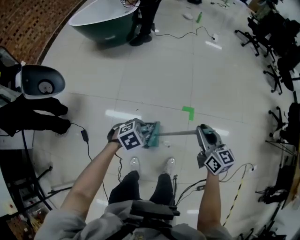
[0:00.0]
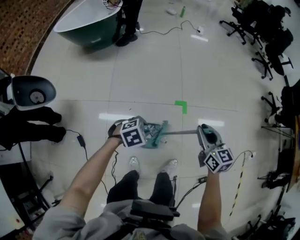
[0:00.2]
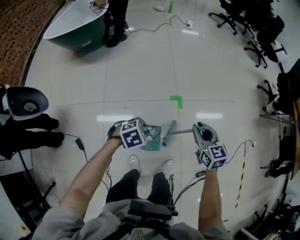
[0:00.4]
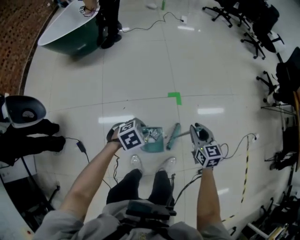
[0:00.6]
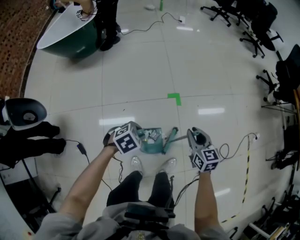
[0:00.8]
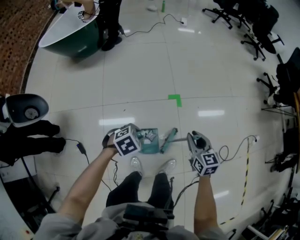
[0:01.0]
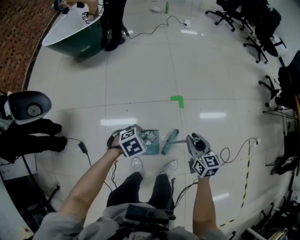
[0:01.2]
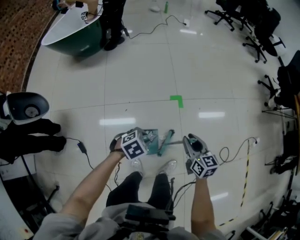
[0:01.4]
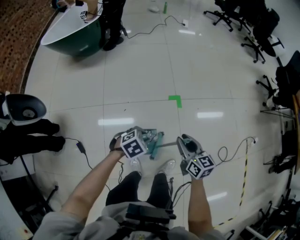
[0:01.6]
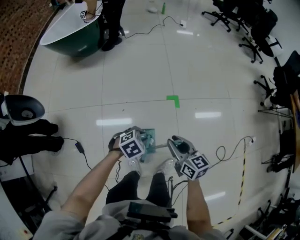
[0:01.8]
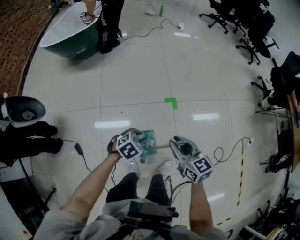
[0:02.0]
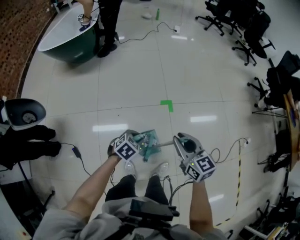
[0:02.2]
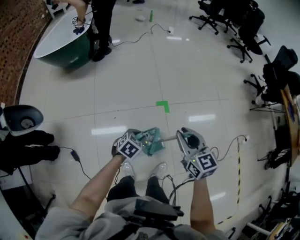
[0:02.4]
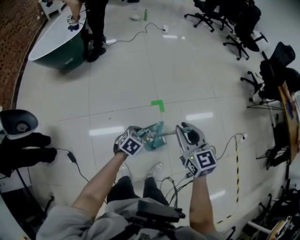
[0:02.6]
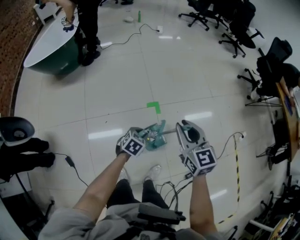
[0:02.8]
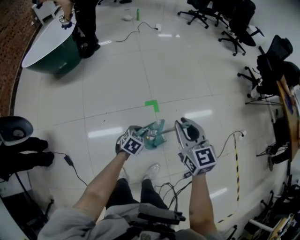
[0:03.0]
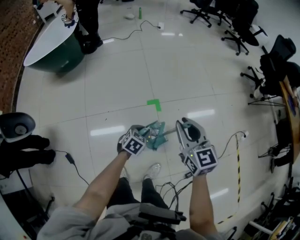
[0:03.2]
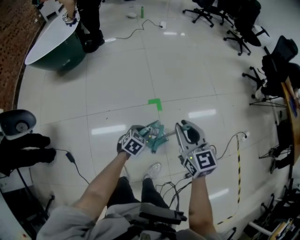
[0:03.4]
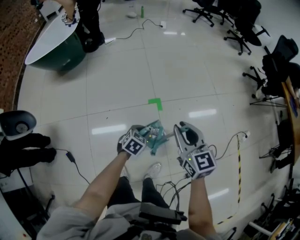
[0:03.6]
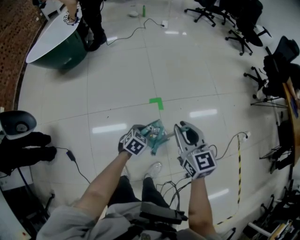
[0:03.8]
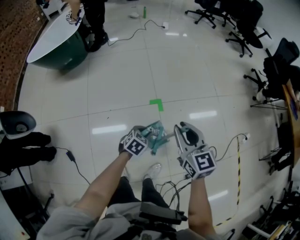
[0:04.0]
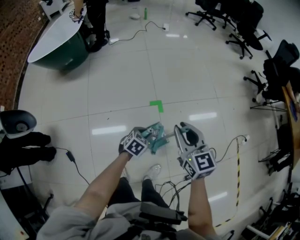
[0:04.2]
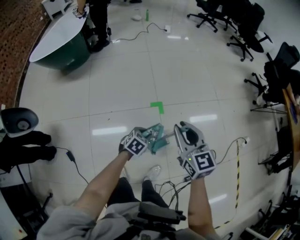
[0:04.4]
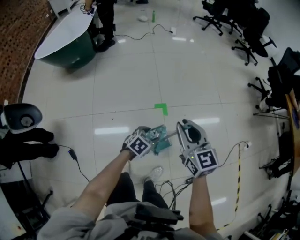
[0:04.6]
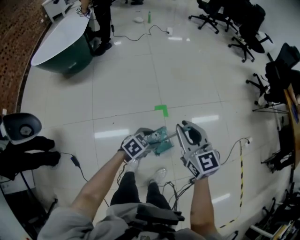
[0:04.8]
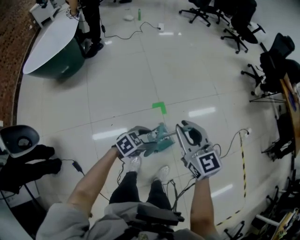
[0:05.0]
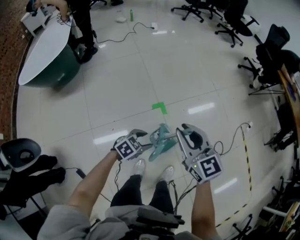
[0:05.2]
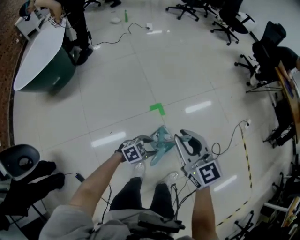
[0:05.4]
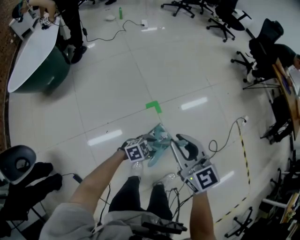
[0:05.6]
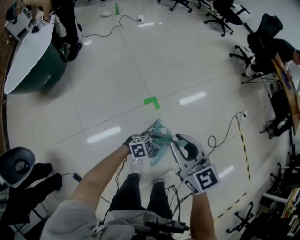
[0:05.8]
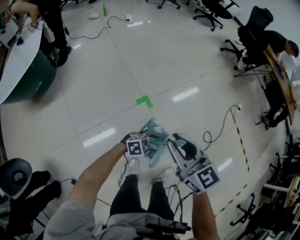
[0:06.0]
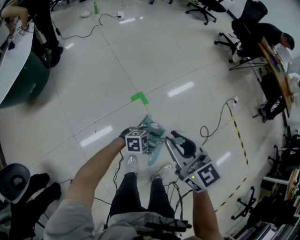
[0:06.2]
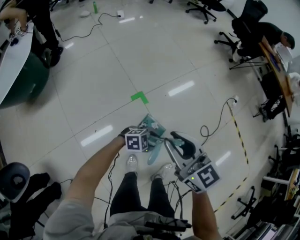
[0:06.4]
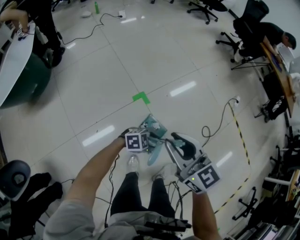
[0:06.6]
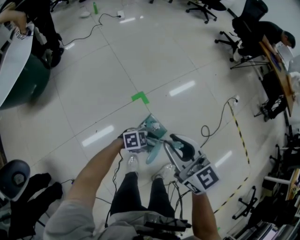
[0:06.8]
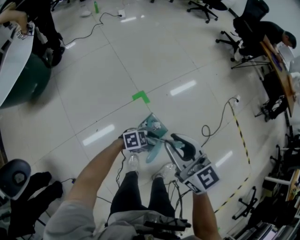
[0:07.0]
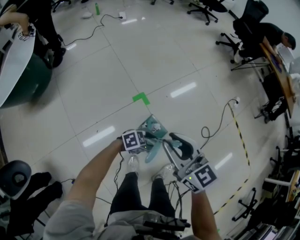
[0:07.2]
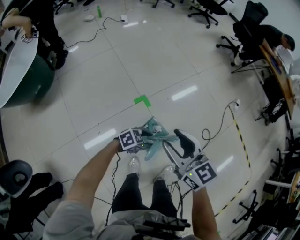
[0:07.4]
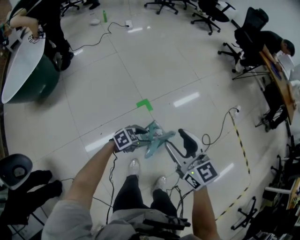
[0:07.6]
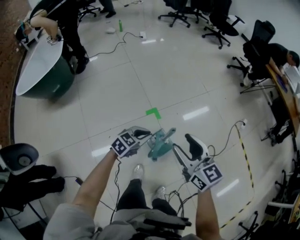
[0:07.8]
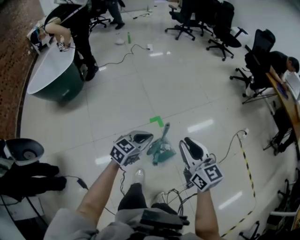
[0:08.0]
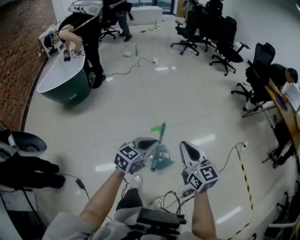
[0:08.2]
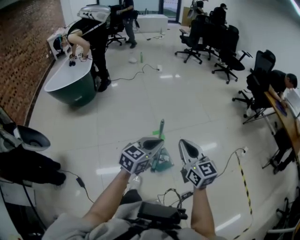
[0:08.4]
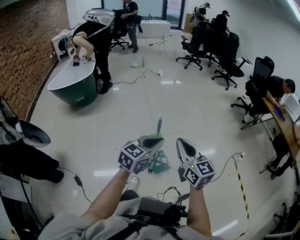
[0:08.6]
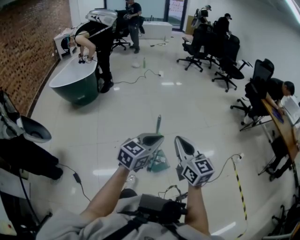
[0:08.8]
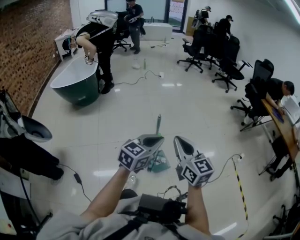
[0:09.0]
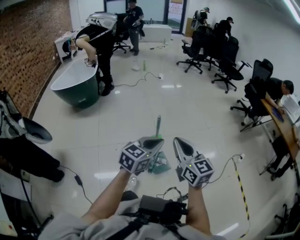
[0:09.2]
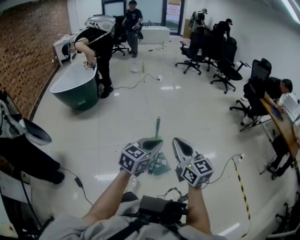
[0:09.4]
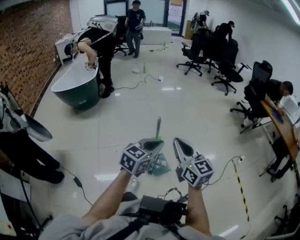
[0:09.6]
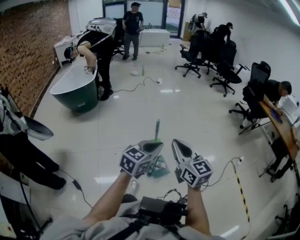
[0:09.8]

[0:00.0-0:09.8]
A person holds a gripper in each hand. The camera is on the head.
0:00.0 to 0:01.4: The right gripper heads to the right, downward and backward, covering roughly 15 cm. The left gripper shifts roughly 10 cm to the right.
0:01.4 to 0:02.8: The right gripper goes some 15 cm upward, and changes its angle by some 20 degrees. The left gripper goes about 15 cm to the right and forward, and swivels approximately 20 degrees.
0:02.8 to 0:04.2: The grippers move only a little.
0:04.2 to 0:05.6: The right gripper ends up approximately 10 cm from where it was; the left gripper moves about 5 cm upward and comes back, changes its angle by approximately 50 degrees, and opens its fingers.
0:05.6 to 0:07.0: The left gripper changes place by some 5 cm, and swivels about 20 degrees.
0:07.0 to 0:08.4: The right gripper ends up roughly 15 cm from where it was, and closes its fingers; the left gripper goes some 30 cm upward, swivels approximately 60 degrees, and closes up.
0:08.4 to 0:09.8: Both grippers move backward, some 5 cm.

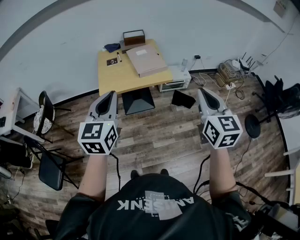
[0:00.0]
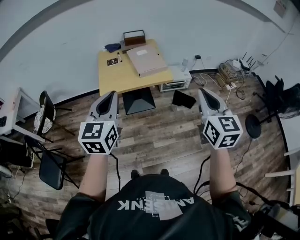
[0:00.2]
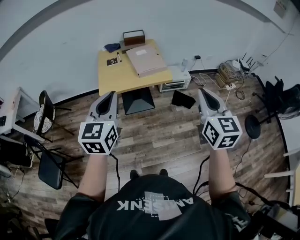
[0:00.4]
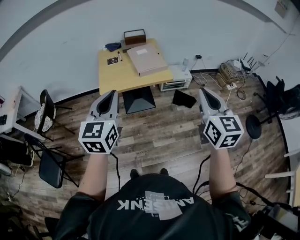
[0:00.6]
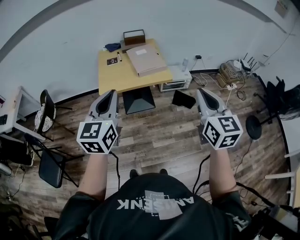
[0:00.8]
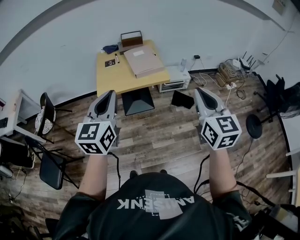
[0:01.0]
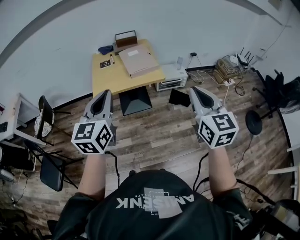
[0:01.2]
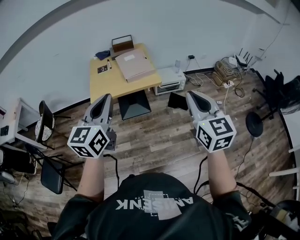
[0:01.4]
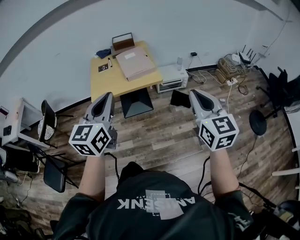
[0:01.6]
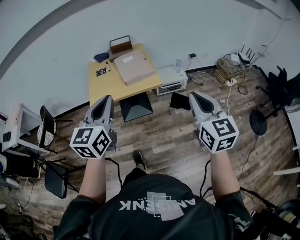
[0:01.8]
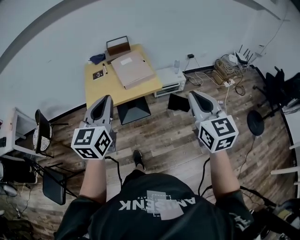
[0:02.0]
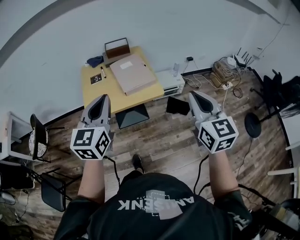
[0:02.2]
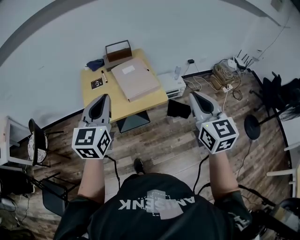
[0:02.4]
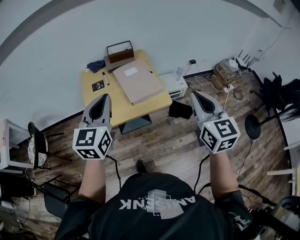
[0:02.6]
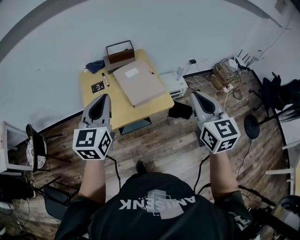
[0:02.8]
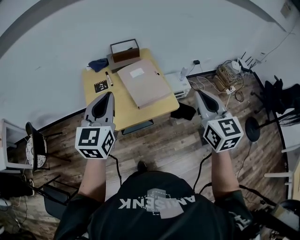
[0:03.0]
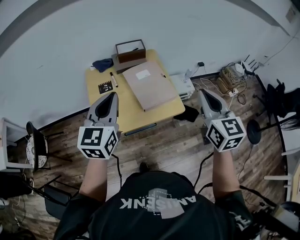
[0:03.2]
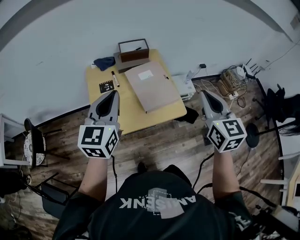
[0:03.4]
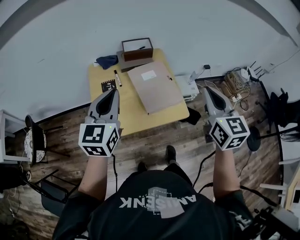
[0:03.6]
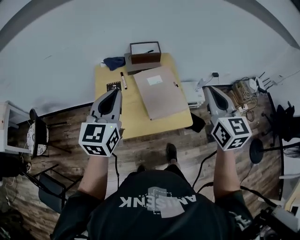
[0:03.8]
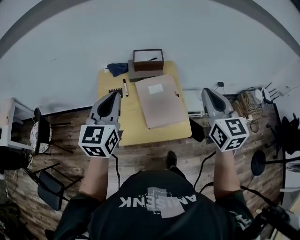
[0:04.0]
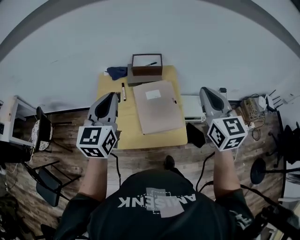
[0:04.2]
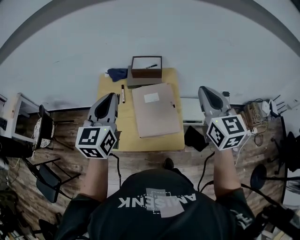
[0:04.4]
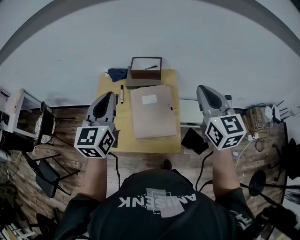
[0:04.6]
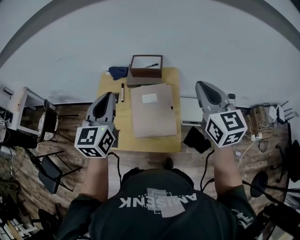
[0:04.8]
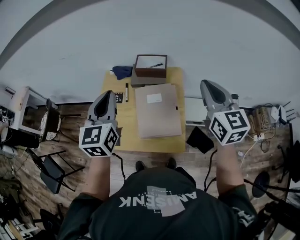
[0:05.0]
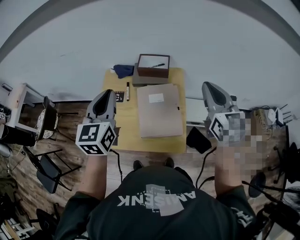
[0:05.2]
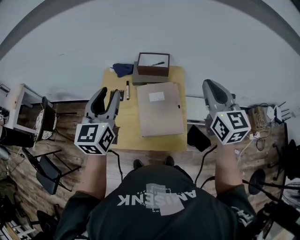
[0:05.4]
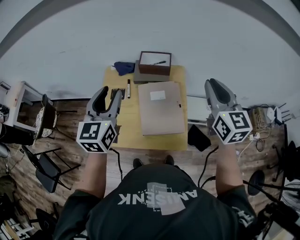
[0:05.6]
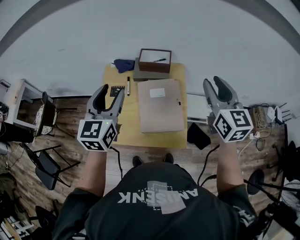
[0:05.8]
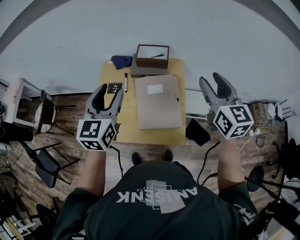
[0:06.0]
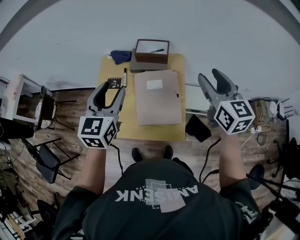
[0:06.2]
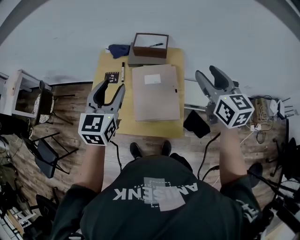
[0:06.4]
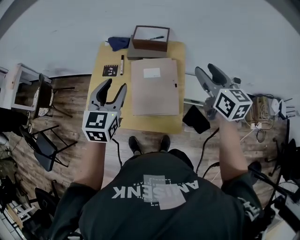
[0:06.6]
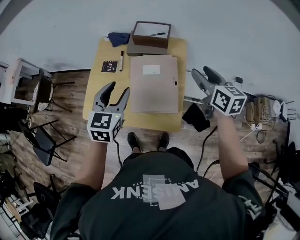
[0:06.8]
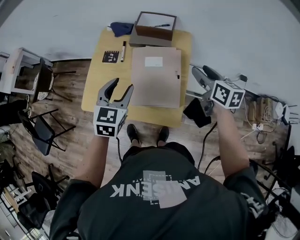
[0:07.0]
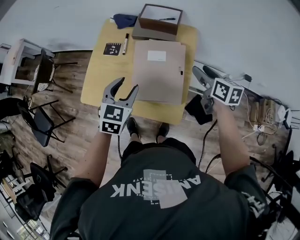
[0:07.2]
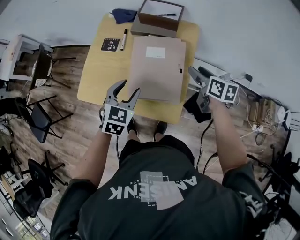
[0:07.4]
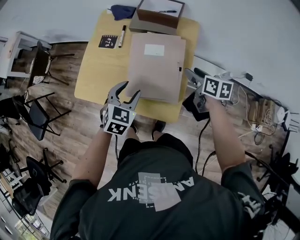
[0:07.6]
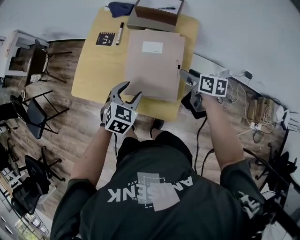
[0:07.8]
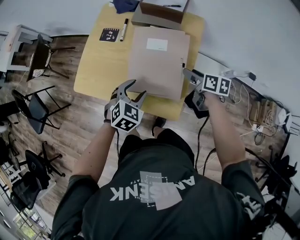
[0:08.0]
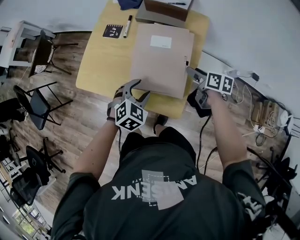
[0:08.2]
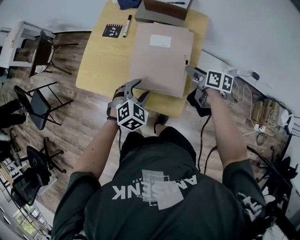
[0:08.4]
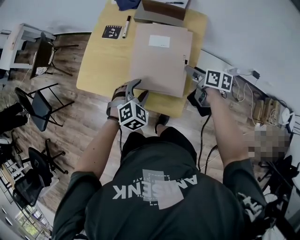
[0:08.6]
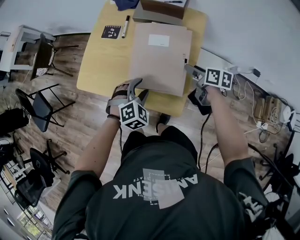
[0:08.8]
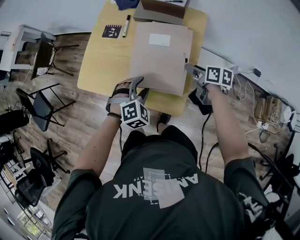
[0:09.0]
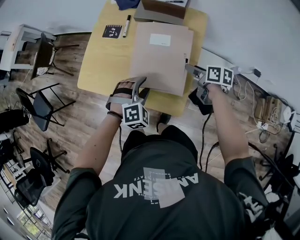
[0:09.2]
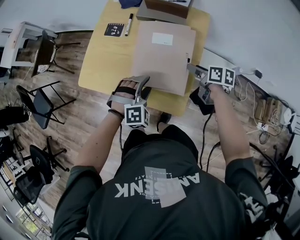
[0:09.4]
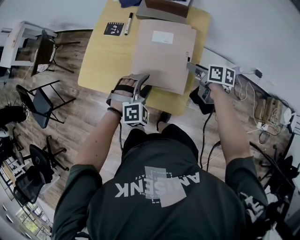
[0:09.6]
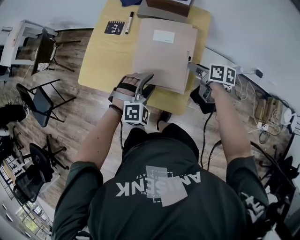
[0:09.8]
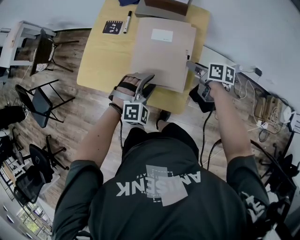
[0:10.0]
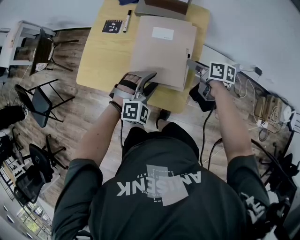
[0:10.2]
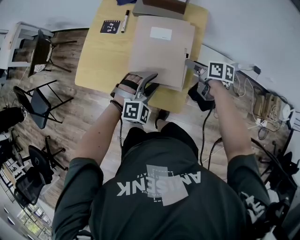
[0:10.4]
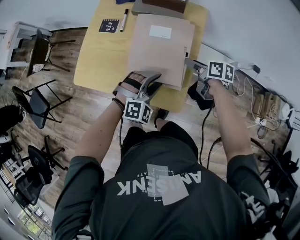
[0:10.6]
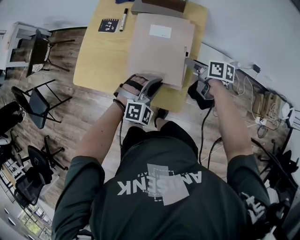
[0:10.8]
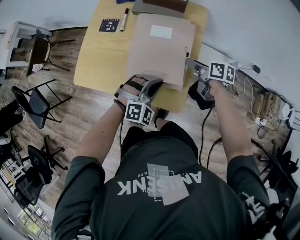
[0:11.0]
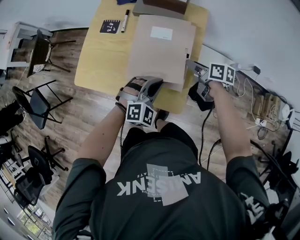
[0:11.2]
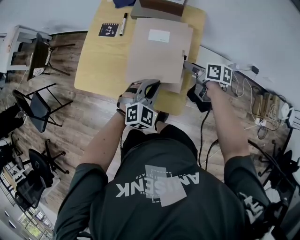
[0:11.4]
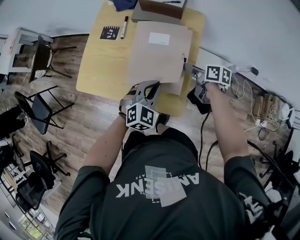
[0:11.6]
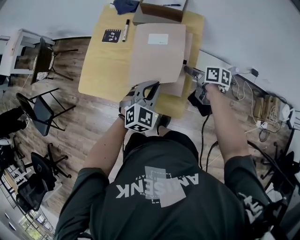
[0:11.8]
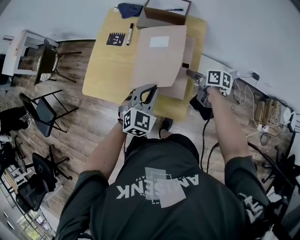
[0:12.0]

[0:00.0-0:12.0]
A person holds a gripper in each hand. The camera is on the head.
0:00.0 to 0:01.6: The grippers both shift to the right by some 10 cm.
0:01.6 to 0:03.0: Both grippers travel together forward and to the left, approximately 35 cm.
0:03.0 to 0:04.4: The right gripper travels forward by approximately 25 cm. Meanwhile the left gripper travels forward by approximately 15 cm.
0:04.4 to 0:06.0: The left gripper opens. Meanwhile the right gripper travels forward by about 5 cm, and opens its fingers.
0:06.0 to 0:07.6: The grippers both shift downward by some 30 cm. The right gripper turns by about 50 degrees, while the left gripper tilts its fingers about 30 degrees downward.
0:07.6 to 0:09.0: The two grippers go approximately 5 cm downward. The left gripper rotates approximately 40 degrees.
0:09.0 to 0:10.4: The left gripper travels to the right by some 5 cm, and swivels about 20 degrees.
0:10.4 to 0:12.0: The left gripper shifts roughly 5 cm upward, turns by about 40 degrees, and closes up.

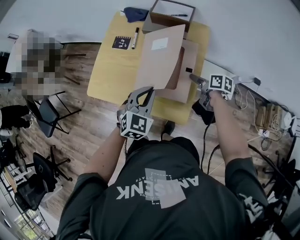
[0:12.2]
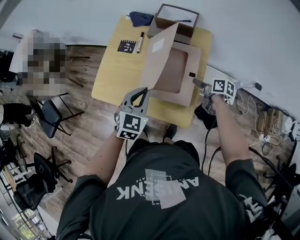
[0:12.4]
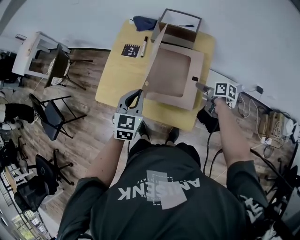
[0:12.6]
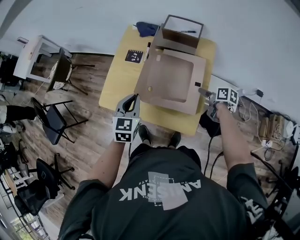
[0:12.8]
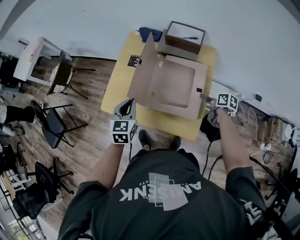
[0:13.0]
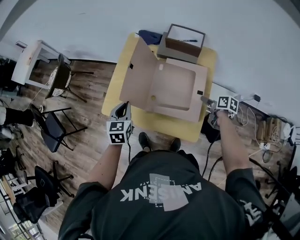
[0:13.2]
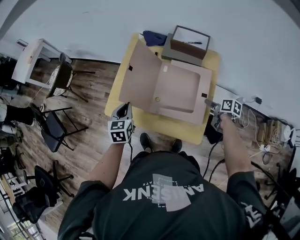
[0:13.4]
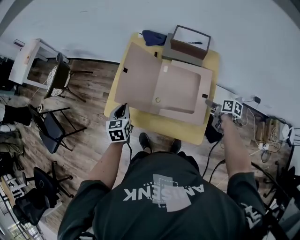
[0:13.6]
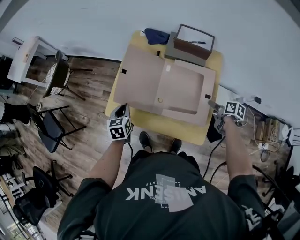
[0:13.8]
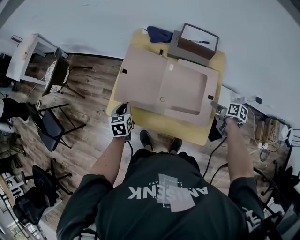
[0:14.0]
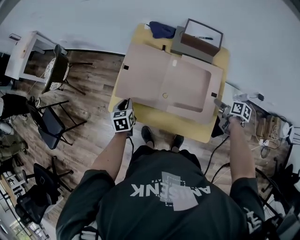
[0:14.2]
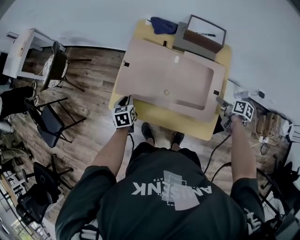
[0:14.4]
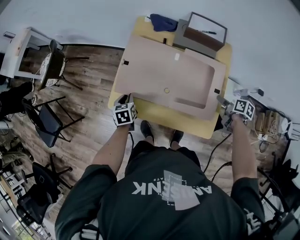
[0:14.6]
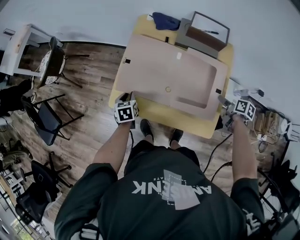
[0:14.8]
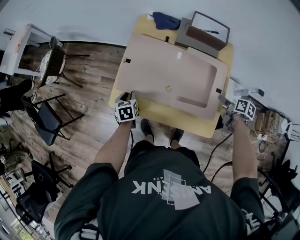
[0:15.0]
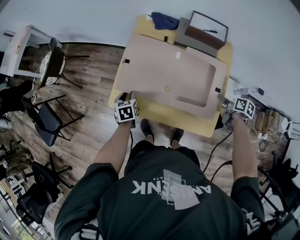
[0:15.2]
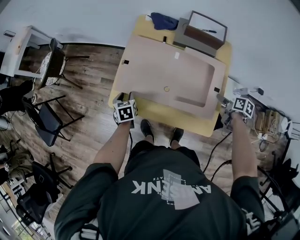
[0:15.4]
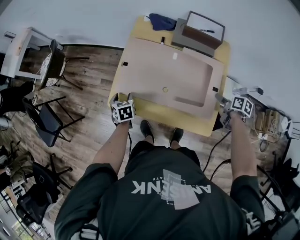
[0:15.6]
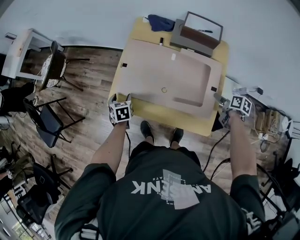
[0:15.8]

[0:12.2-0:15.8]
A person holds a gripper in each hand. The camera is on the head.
0:12.2 to 0:14.0: The left gripper shifts some 30 cm to the left and forward, and twists approximately 40 degrees counterclockwise, seen from behind.
0:14.0 to 0:15.8: The left gripper travels downward by some 5 cm, and opens its fingers.
